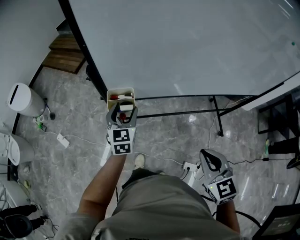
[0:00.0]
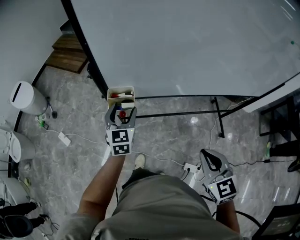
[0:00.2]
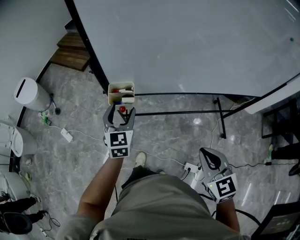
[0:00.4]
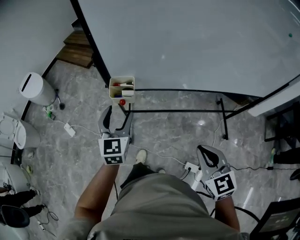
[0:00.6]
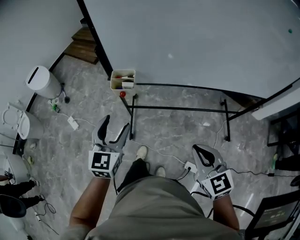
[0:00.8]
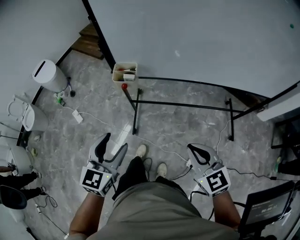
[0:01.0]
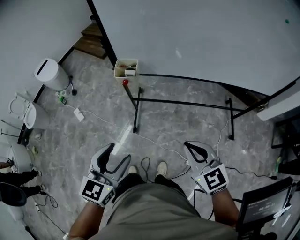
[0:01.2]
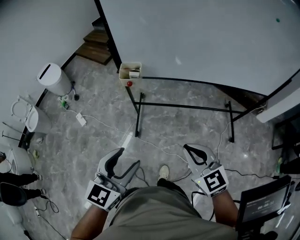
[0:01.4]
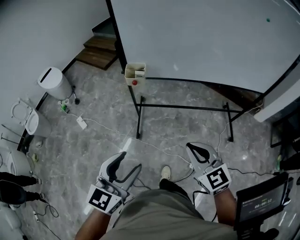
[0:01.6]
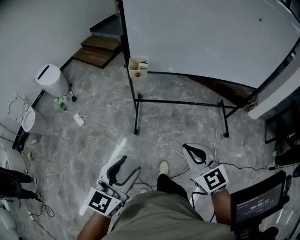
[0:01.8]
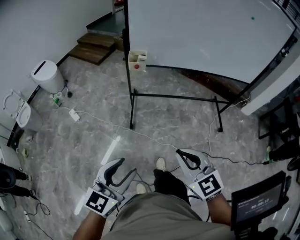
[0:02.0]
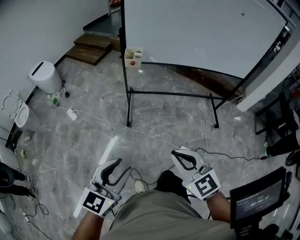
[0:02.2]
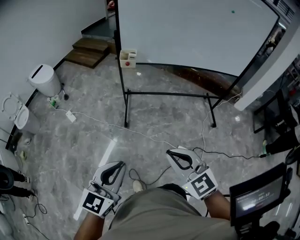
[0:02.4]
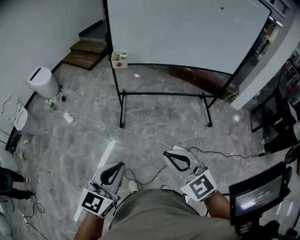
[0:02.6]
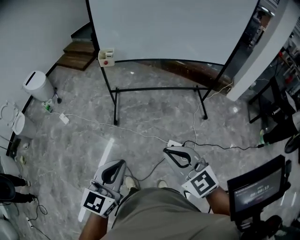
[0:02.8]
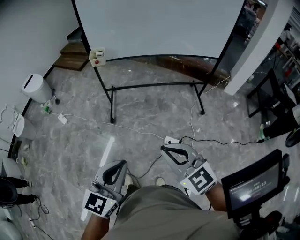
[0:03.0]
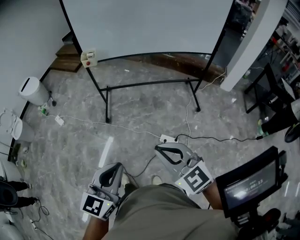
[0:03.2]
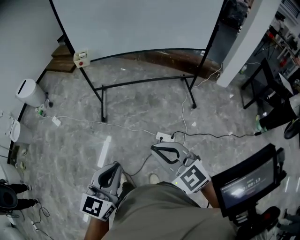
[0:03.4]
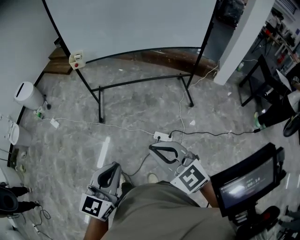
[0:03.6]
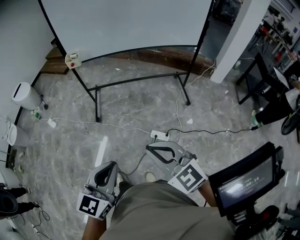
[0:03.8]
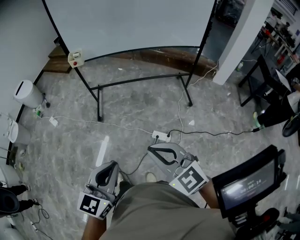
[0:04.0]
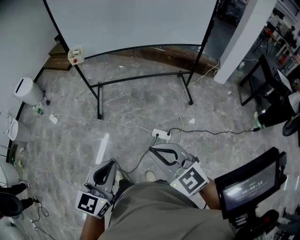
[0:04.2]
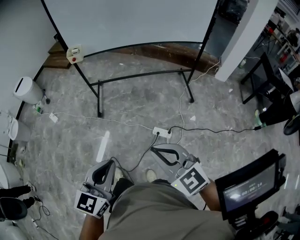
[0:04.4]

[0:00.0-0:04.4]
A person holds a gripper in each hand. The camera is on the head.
0:00.0 to 0:01.4: The right gripper moves backward, about 15 cm, and swivels approximately 20 degrees. The left gripper travels backward by approximately 40 cm.
0:01.4 to 0:03.0: The two grippers travel together, backward, approximately 40 cm. The left gripper closes its fingers.
0:03.0 to 0:04.4: The right gripper ends up approximately 5 cm from where it was, while the left gripper moves some 5 cm.

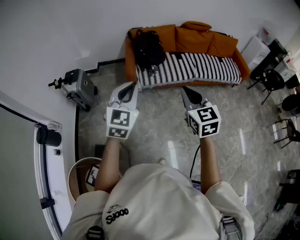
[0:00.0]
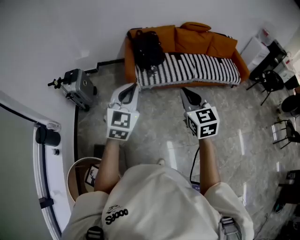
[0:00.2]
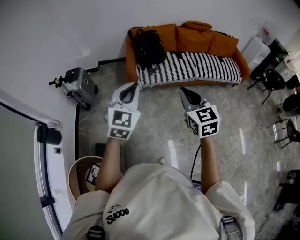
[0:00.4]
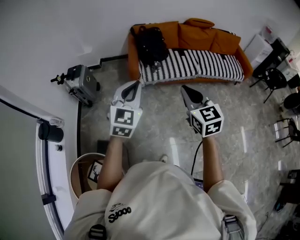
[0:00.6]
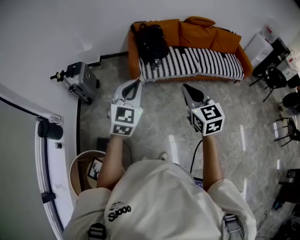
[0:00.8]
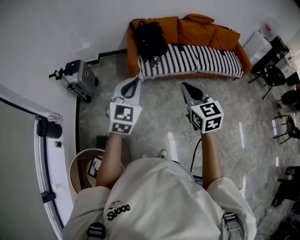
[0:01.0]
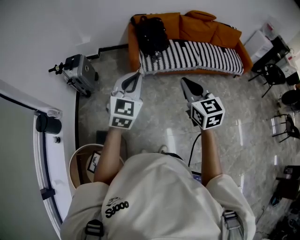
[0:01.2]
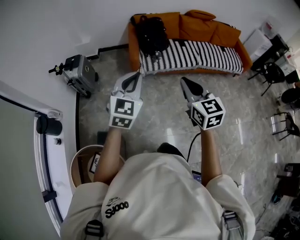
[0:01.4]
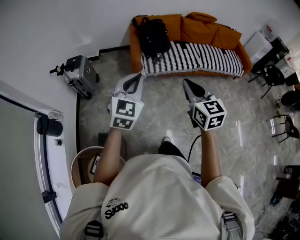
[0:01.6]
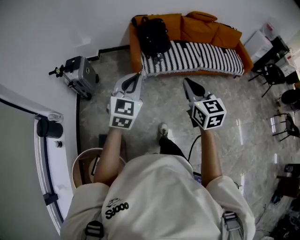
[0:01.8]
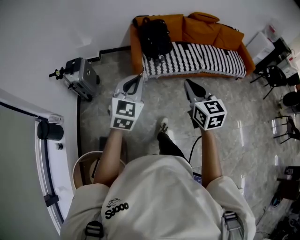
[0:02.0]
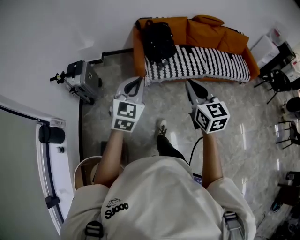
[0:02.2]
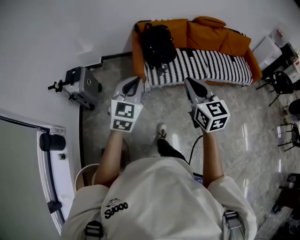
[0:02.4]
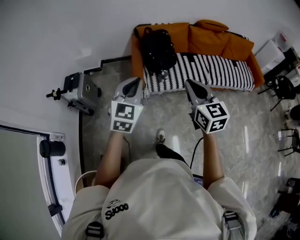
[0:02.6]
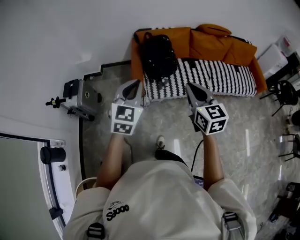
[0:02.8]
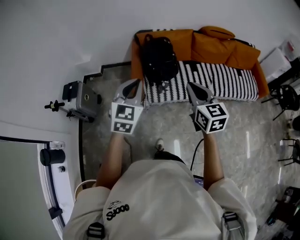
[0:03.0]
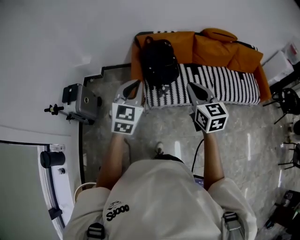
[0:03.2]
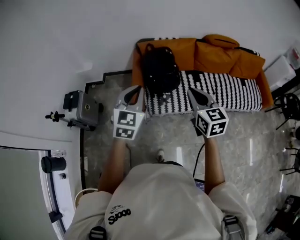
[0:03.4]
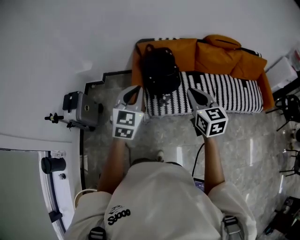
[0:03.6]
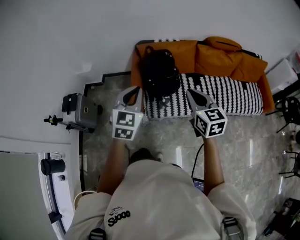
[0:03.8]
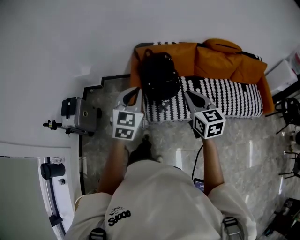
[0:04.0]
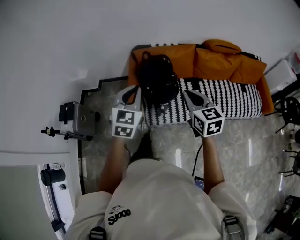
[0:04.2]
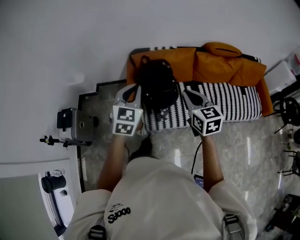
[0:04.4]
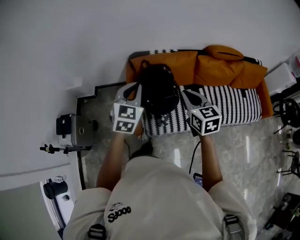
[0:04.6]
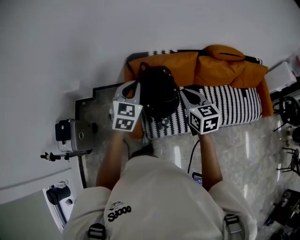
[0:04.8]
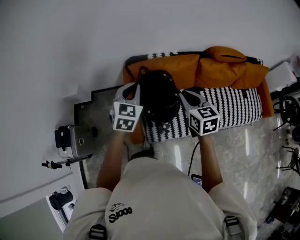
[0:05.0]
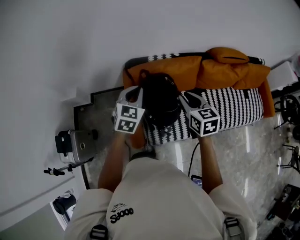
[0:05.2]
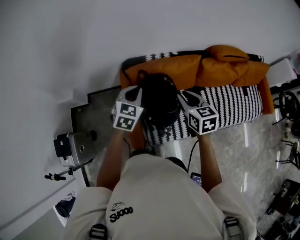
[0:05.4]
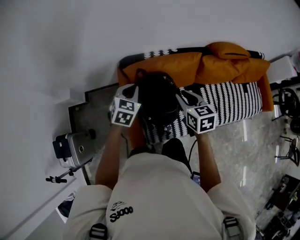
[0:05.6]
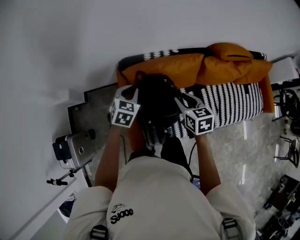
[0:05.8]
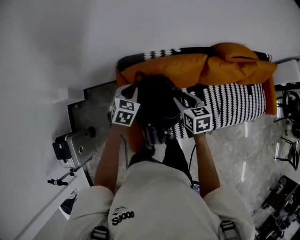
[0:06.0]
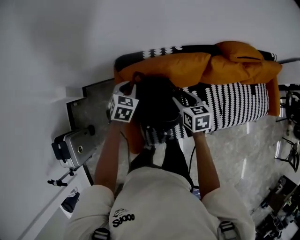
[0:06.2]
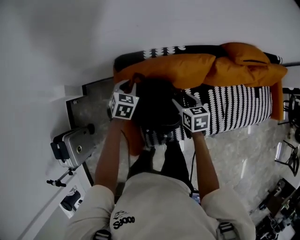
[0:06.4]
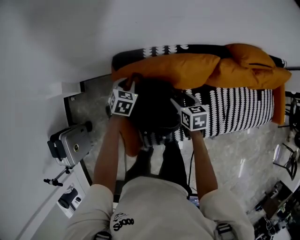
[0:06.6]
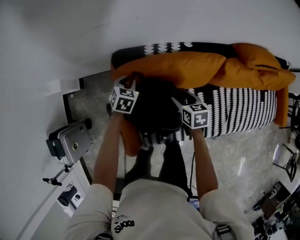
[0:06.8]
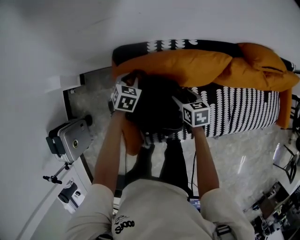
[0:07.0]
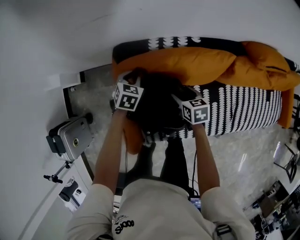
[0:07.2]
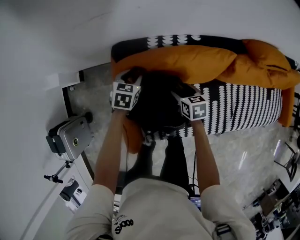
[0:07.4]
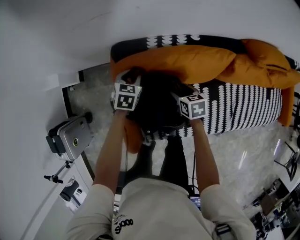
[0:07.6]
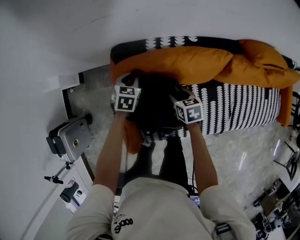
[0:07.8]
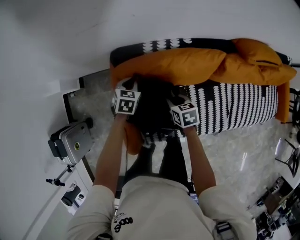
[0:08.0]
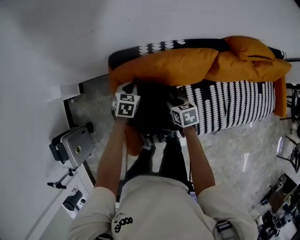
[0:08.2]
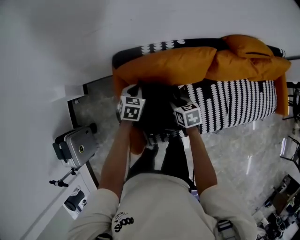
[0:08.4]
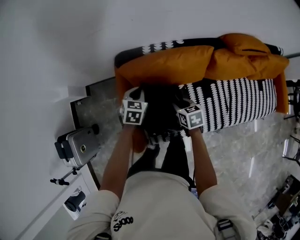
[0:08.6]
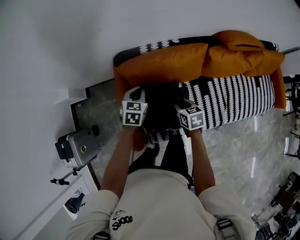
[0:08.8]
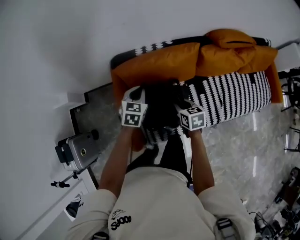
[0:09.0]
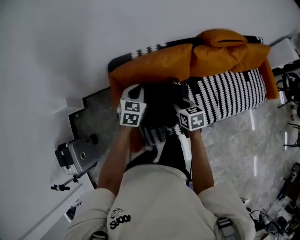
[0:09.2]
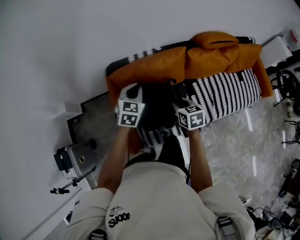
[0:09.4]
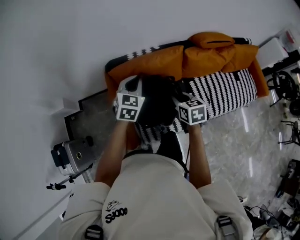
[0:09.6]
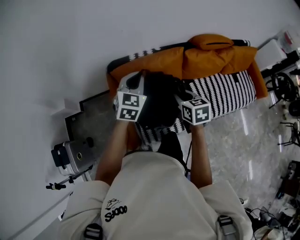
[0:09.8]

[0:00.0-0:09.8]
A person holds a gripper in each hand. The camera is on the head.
0:00.0 to 0:01.4: The grippers both shift to the left by about 5 cm.
0:01.4 to 0:02.8: The grippers both shift forward by about 35 cm.
0:02.8 to 0:04.2: The two grippers go about 25 cm forward.
0:04.2 to 0:05.6: The left gripper heads forward and downward, covering about 40 cm, and rotates some 20 degrees; the right gripper heads forward, covering about 35 cm.
0:05.6 to 0:07.0: Both grippers travel together downward and forward, some 30 cm. The right gripper changes its angle by roughly 20 degrees, and opens.
0:07.0 to 0:08.4: The right gripper shifts about 5 cm backward, and closes up. Meanwhile the left gripper shifts about 10 cm backward and upward.
0:08.4 to 0:09.8: The two grippers go approximately 30 cm upward and backward. The right gripper rotates about 20 degrees, while the left gripper tips its fingers upward by about 30 degrees.

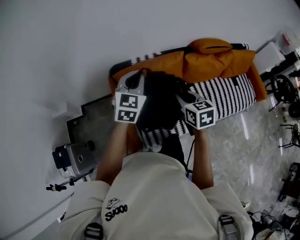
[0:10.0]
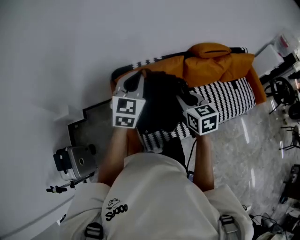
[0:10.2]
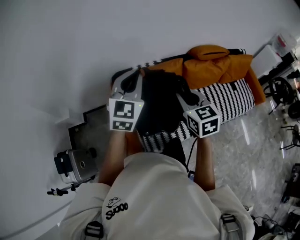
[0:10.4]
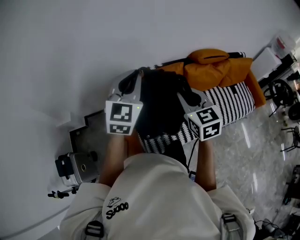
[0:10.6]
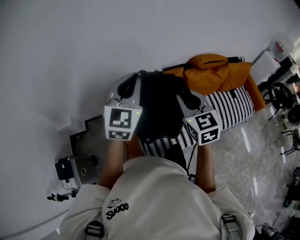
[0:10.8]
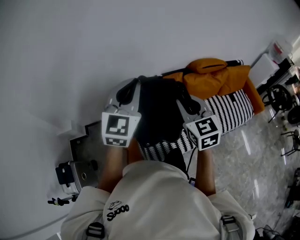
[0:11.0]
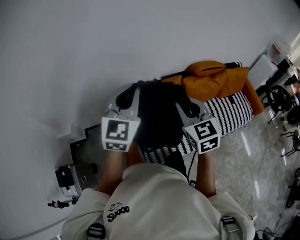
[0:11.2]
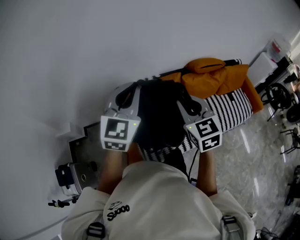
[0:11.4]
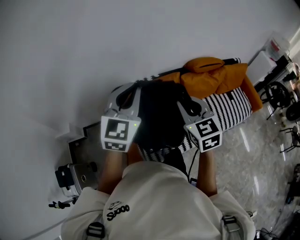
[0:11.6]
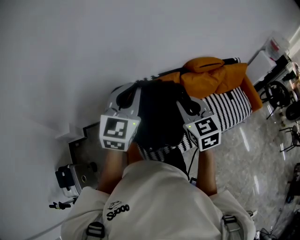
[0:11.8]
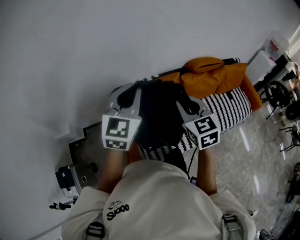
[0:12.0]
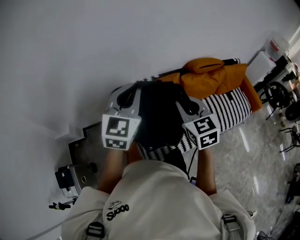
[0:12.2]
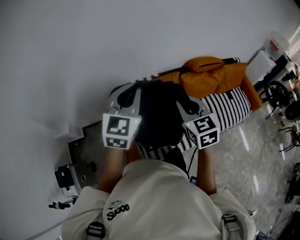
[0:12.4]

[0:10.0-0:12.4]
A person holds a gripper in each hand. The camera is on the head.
0:10.0 to 0:11.2: Both grippers travel together upward, about 15 cm. The right gripper rotates about 30 degrees.
0:11.2 to 0:12.4: There are only small adjustments of the grippers.

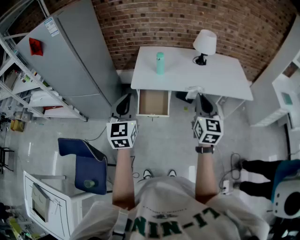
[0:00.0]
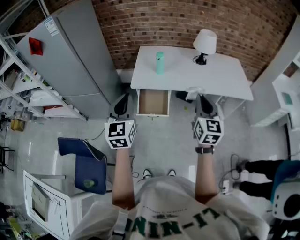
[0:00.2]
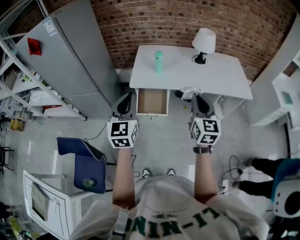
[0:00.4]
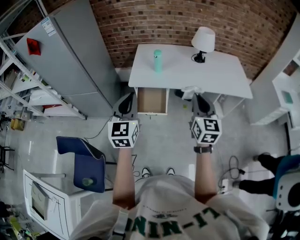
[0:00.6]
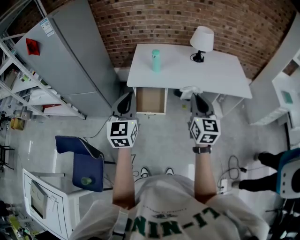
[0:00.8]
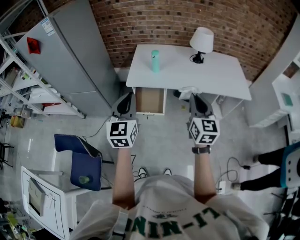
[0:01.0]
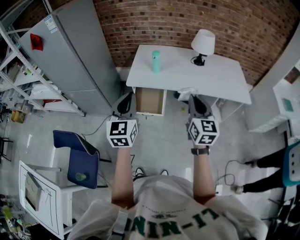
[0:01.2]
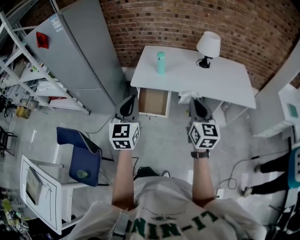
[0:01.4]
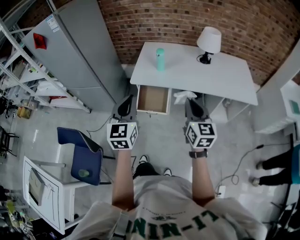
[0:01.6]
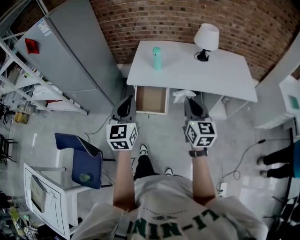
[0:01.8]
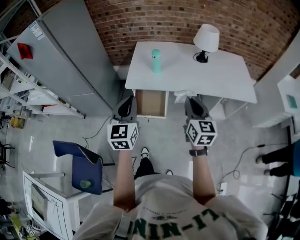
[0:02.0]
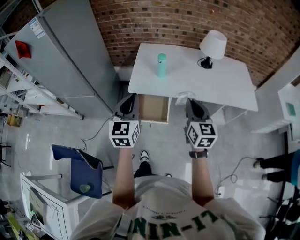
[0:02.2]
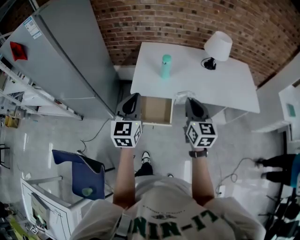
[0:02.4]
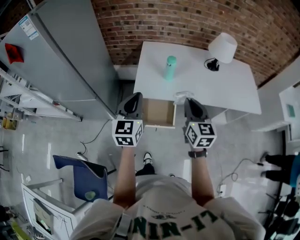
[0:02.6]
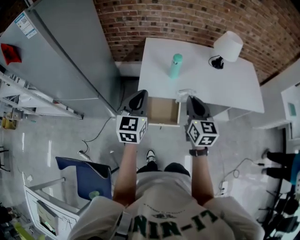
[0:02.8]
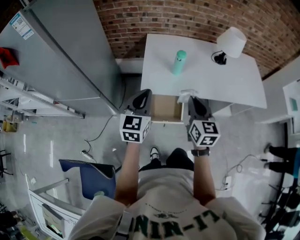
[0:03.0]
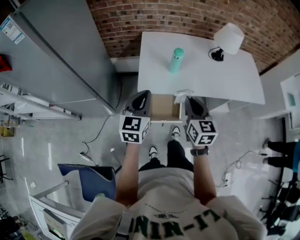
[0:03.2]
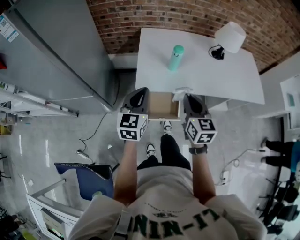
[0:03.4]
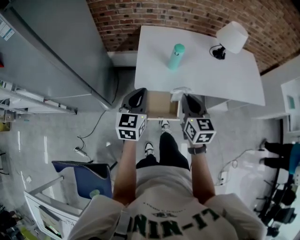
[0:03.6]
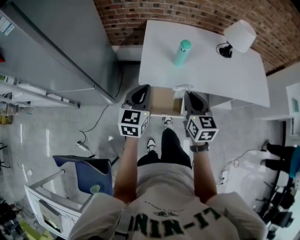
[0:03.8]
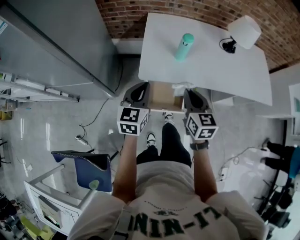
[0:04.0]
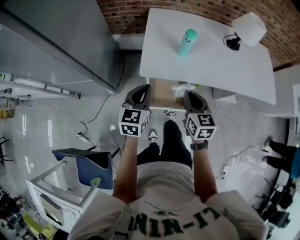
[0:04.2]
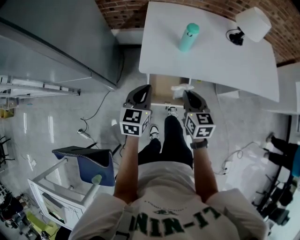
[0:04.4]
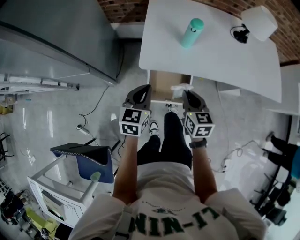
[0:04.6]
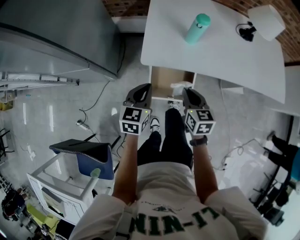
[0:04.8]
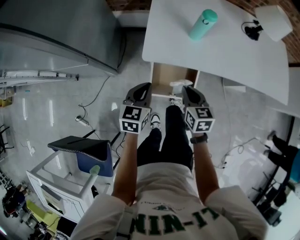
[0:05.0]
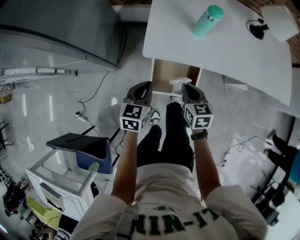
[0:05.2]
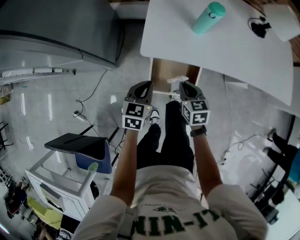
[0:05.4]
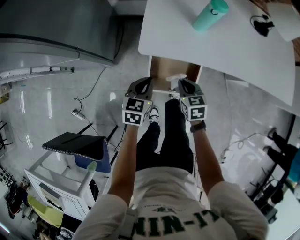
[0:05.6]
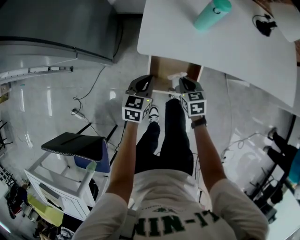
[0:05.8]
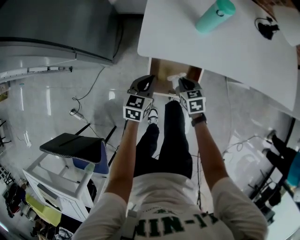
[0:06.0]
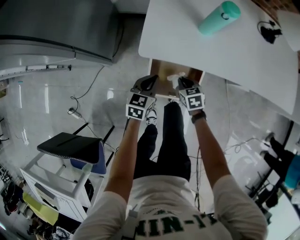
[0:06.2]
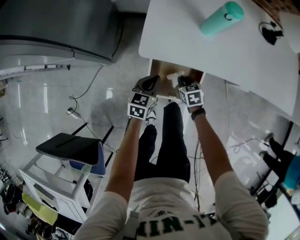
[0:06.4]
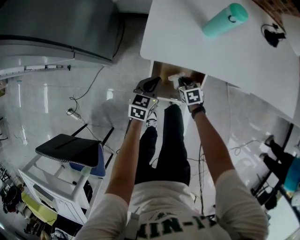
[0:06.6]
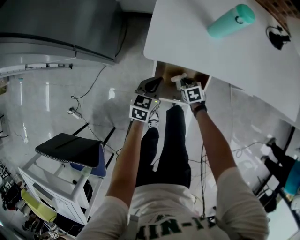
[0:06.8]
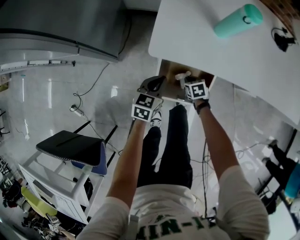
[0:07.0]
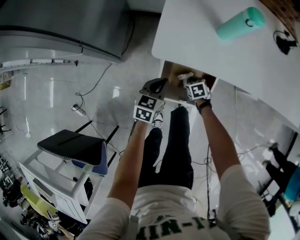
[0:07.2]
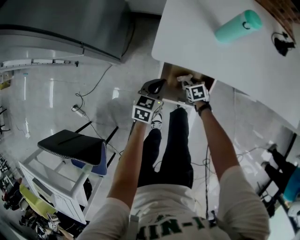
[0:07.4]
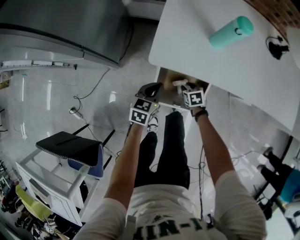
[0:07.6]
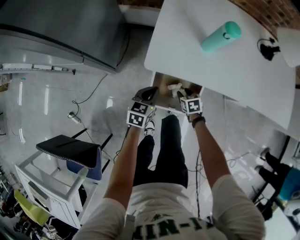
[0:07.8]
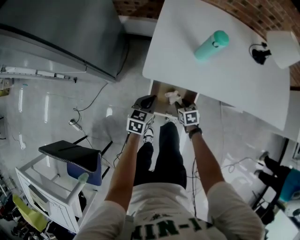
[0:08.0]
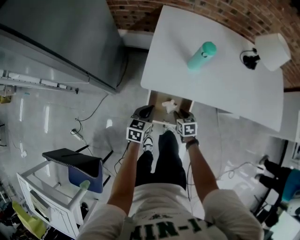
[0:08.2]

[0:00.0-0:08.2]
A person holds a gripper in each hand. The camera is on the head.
0:00.0 to 0:01.6: The left gripper shifts some 5 cm to the right.
0:01.6 to 0:03.2: Both grippers travel together forward, to the left and downward, approximately 30 cm. The left gripper rotates roughly 20 degrees.
0:03.2 to 0:05.0: The grippers both shift downward by approximately 25 cm. The left gripper swivels approximately 20 degrees; the right gripper changes its angle by about 20 degrees.
0:05.0 to 0:06.6: The right gripper shifts some 25 cm downward, and changes its angle by some 30 degrees. Meanwhile the left gripper moves downward, about 20 cm.
0:06.6 to 0:08.2: The grippers both shift upward by roughly 10 cm. The right gripper opens.
